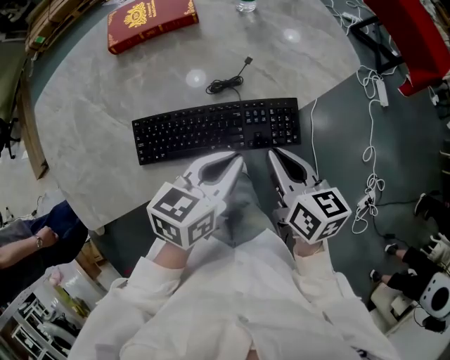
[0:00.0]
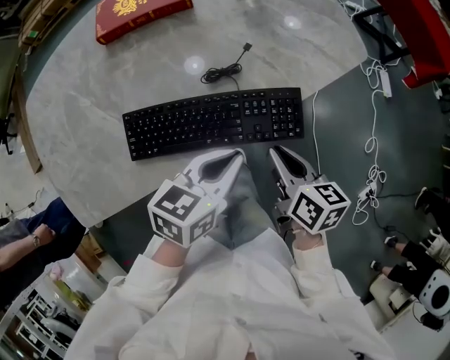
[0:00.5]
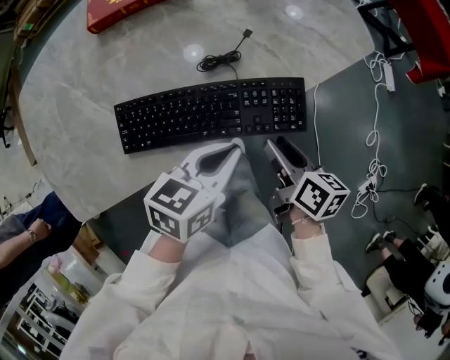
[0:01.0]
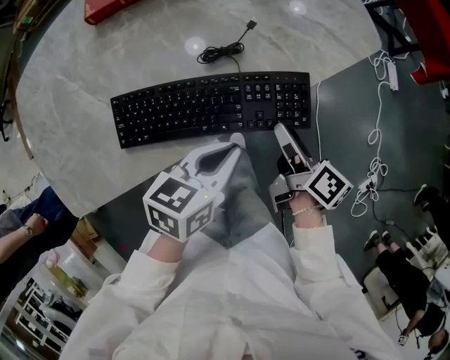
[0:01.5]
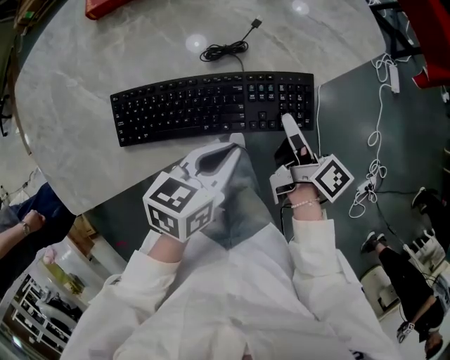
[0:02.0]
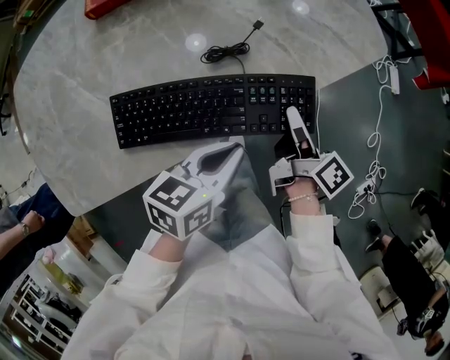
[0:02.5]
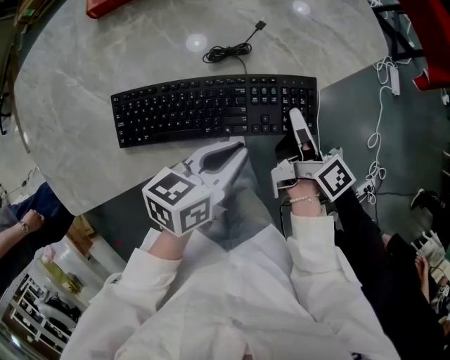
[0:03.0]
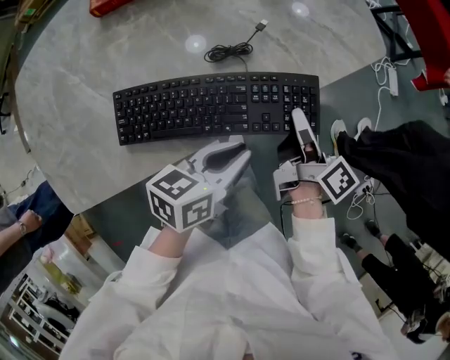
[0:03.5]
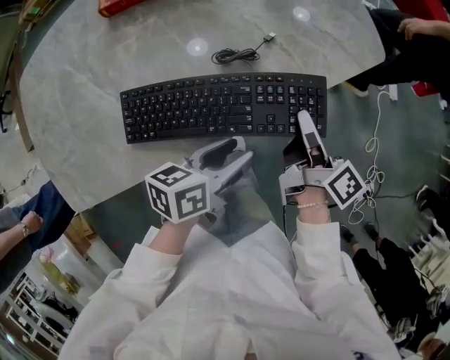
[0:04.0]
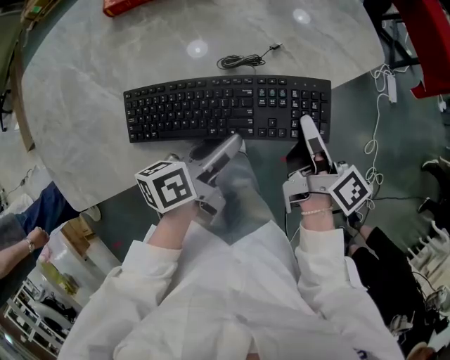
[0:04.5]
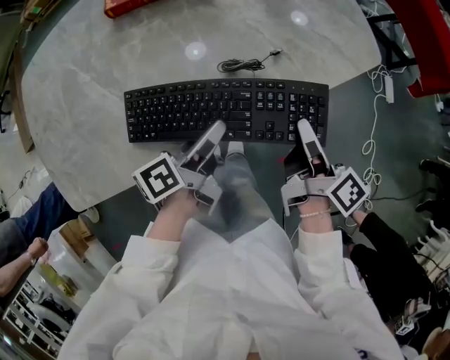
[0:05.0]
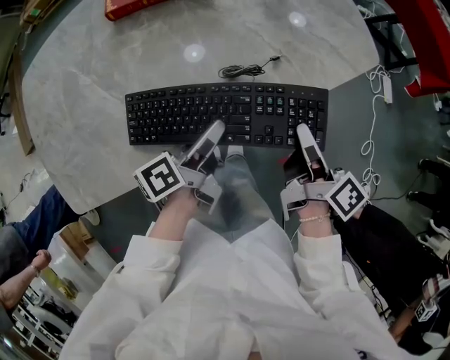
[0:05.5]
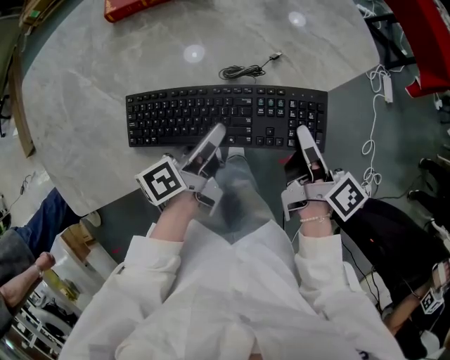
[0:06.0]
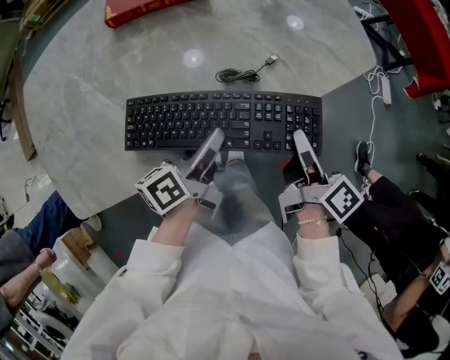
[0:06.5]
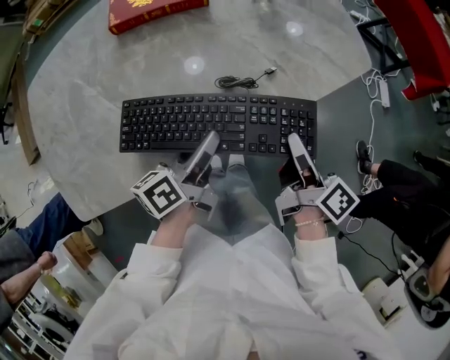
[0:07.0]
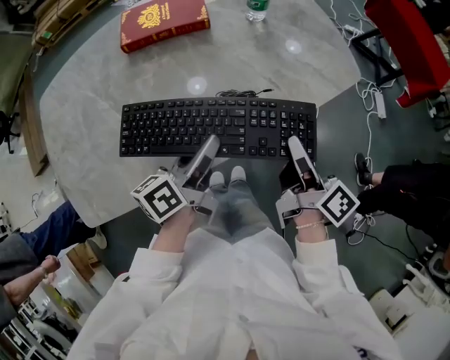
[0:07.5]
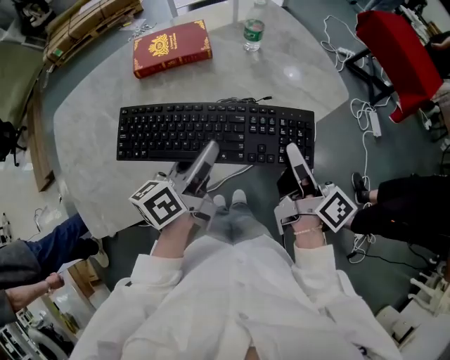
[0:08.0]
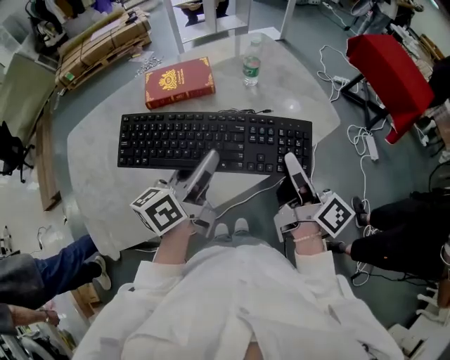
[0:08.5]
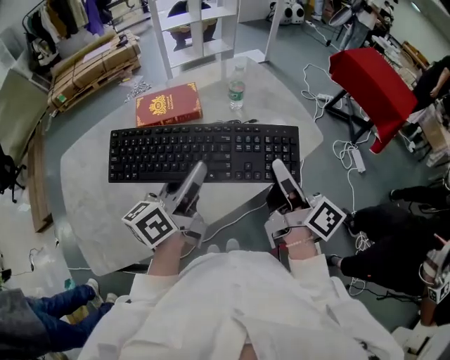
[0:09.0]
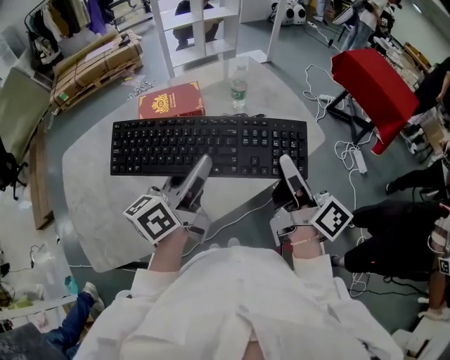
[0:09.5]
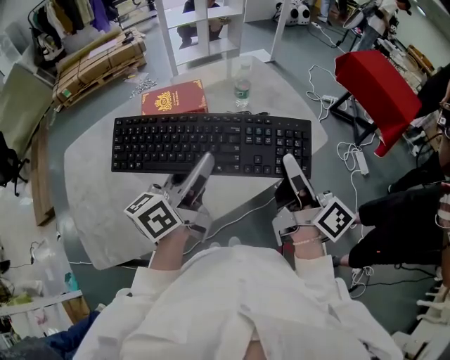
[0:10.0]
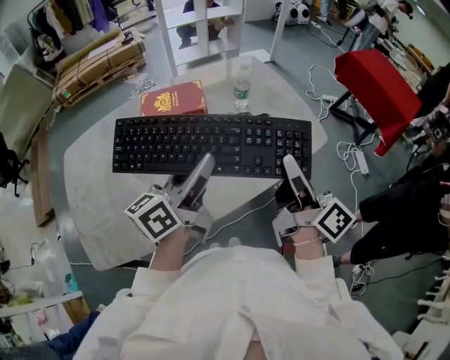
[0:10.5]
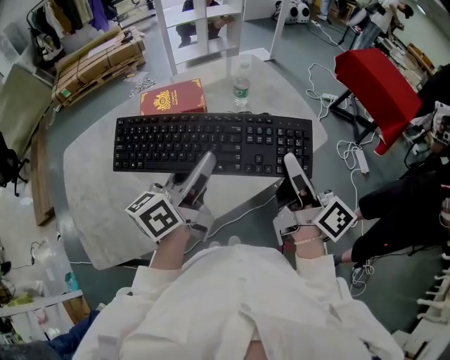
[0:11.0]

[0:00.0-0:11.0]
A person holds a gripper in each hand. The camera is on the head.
0:00.0 to 0:02.0: The grippers both shift downward by approximately 10 cm. The right gripper twists some 40 degrees clockwise, seen from behind, and opens its fingers.
0:02.0 to 0:03.5: The right gripper closes up.
0:03.5 to 0:05.5: The left gripper is displaced to the left by approximately 10 cm, rotates some 40 degrees, and opens its fingers.
0:05.5 to 0:07.5: Both grippers move downward, some 10 cm.
0:07.5 to 0:09.0: Both grippers move upward, some 10 cm. The right gripper rotates about 20 degrees. The left gripper swivels some 20 degrees.
0:09.0 to 0:11.0: The grippers stay close to where they were, moving slightly.

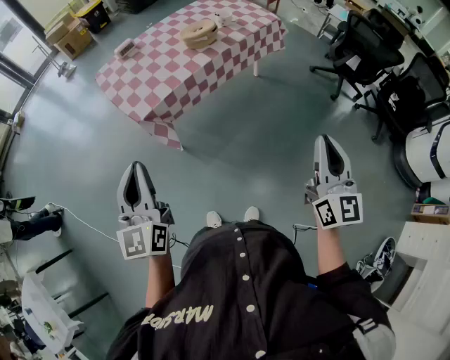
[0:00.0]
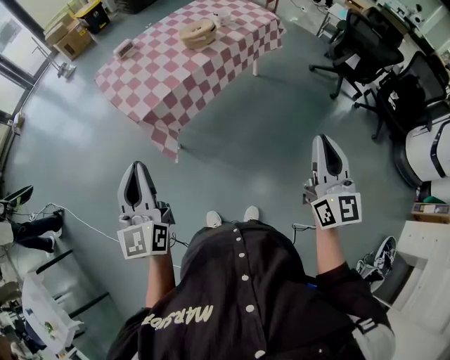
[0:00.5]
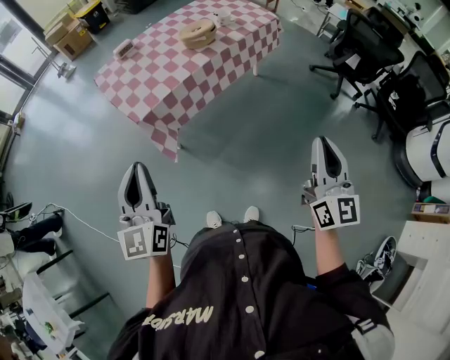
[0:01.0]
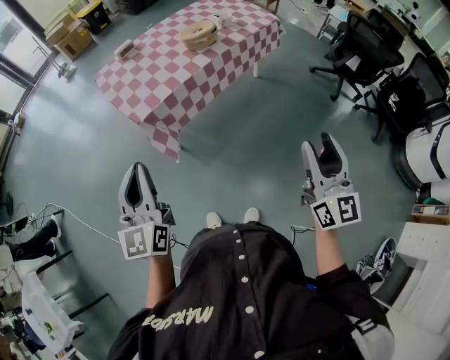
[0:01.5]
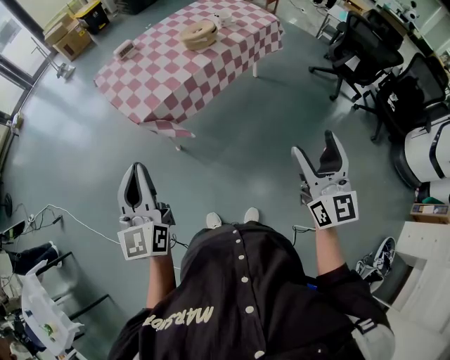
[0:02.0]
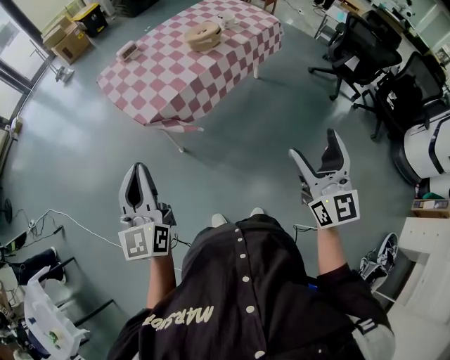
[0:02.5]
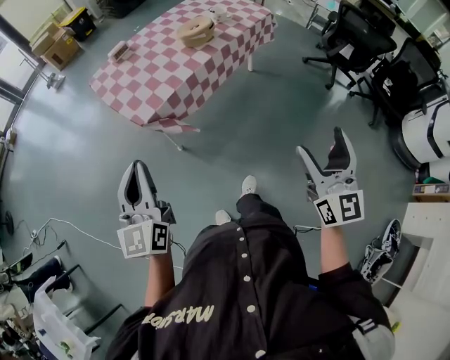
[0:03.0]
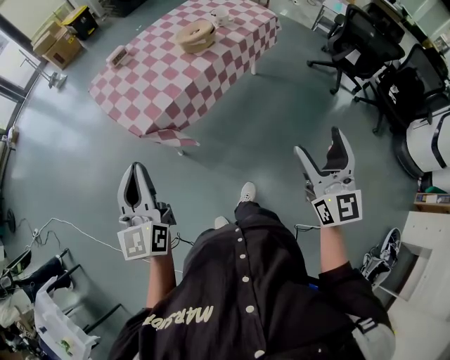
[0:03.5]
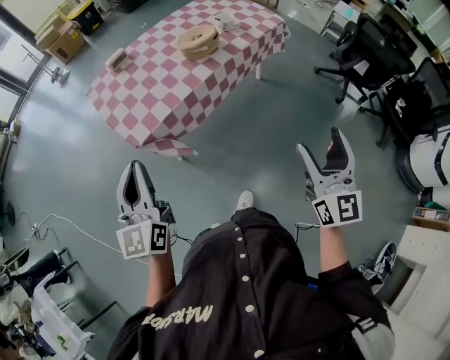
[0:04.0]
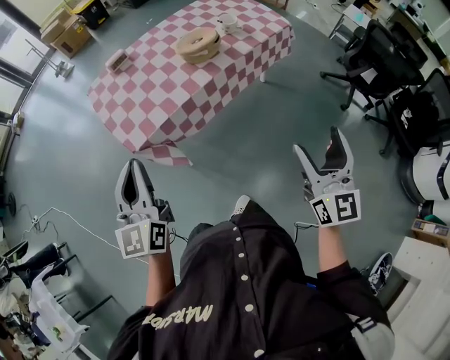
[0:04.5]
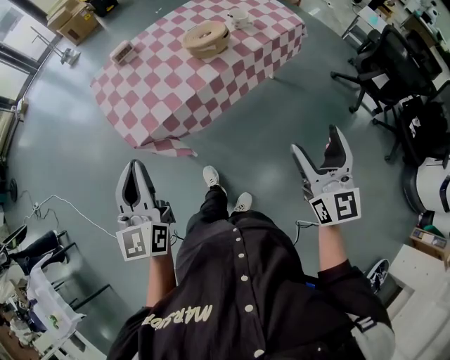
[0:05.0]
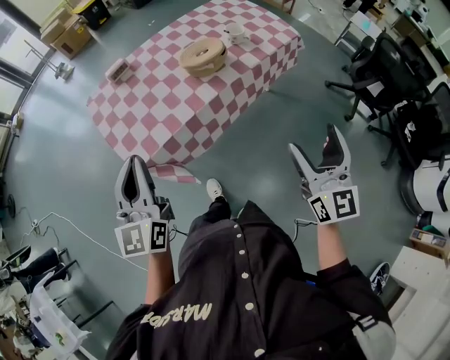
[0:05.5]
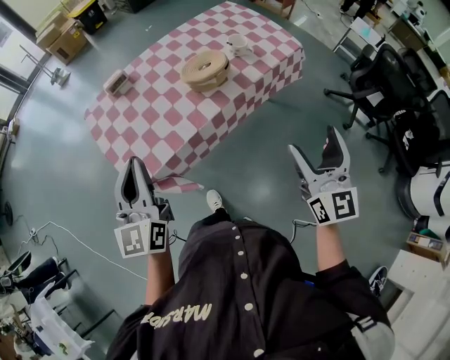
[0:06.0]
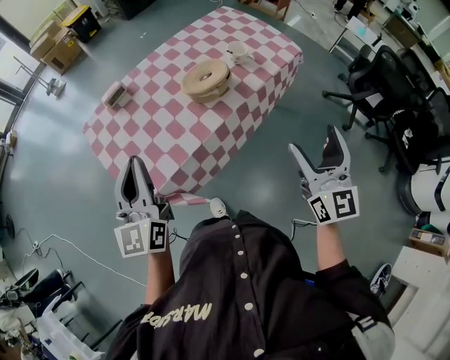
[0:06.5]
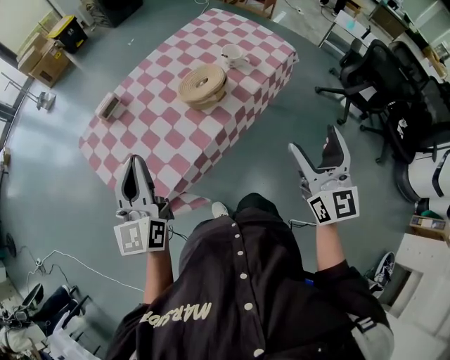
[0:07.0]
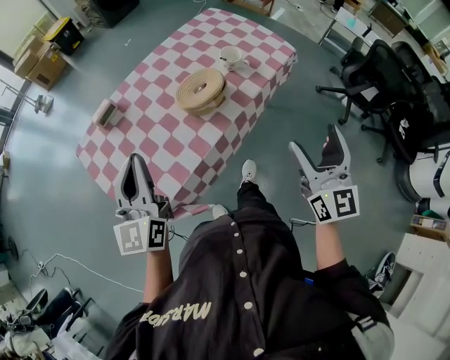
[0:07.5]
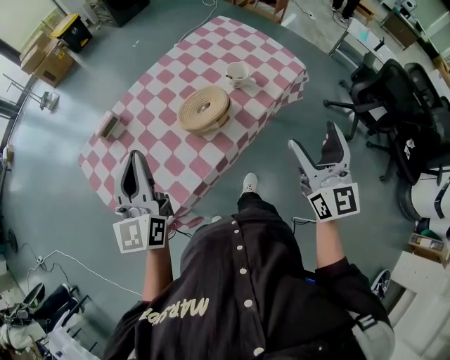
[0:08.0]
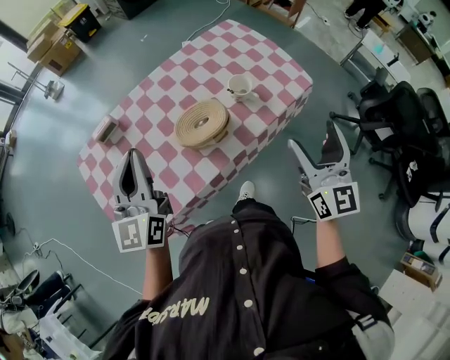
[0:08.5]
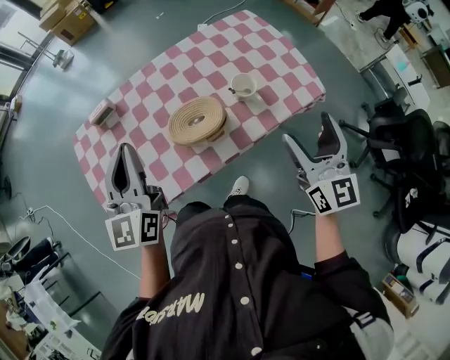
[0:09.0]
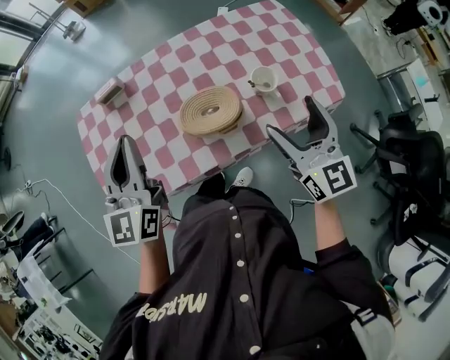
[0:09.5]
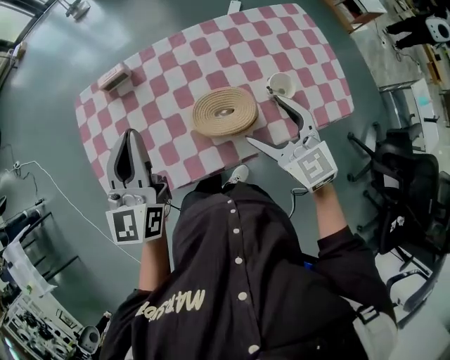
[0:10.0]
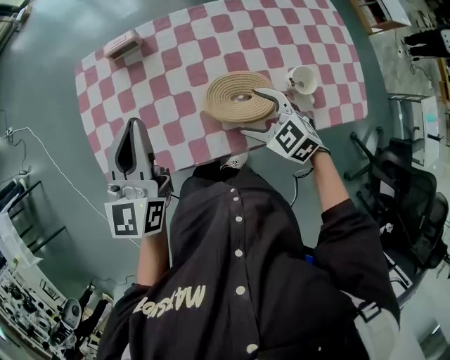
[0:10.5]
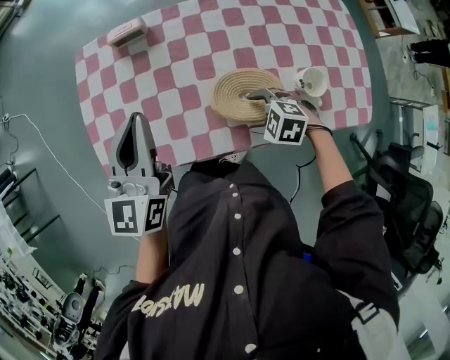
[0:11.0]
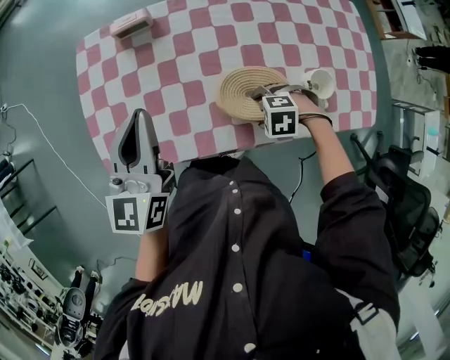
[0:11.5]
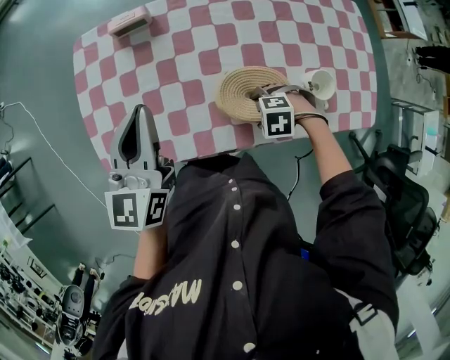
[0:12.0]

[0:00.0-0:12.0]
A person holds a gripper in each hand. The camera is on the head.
0:00.0 to 0:02.0: The right gripper opens up.
0:02.0 to 0:04.0: Both grippers travel together forward, some 15 cm.
0:04.0 to 0:06.0: Both grippers travel together forward, some 20 cm.
0:06.0 to 0:08.0: Both grippers travel together forward, about 20 cm.
0:08.0 to 0:10.0: The right gripper shifts by about 30 cm, and rotates approximately 60 degrees; the left gripper shifts by about 10 cm, and swivels roughly 20 degrees.
0:10.0 to 0:12.0: The left gripper travels downward by about 5 cm, while the right gripper is displaced downward by some 25 cm, and tilts its fingers some 50 degrees downward.

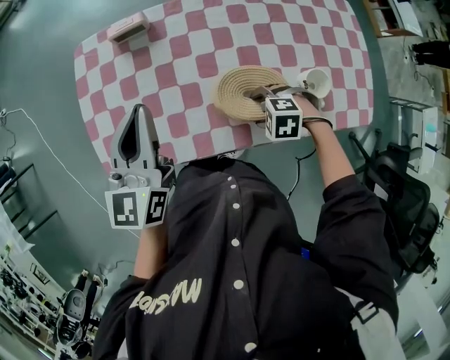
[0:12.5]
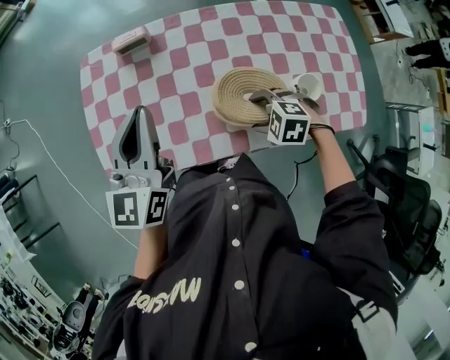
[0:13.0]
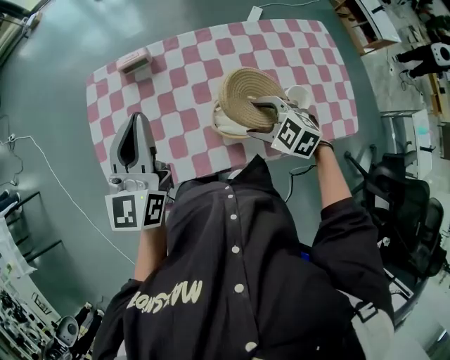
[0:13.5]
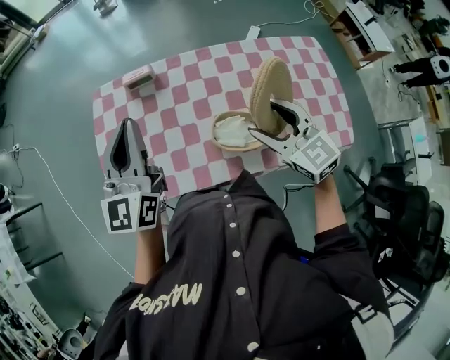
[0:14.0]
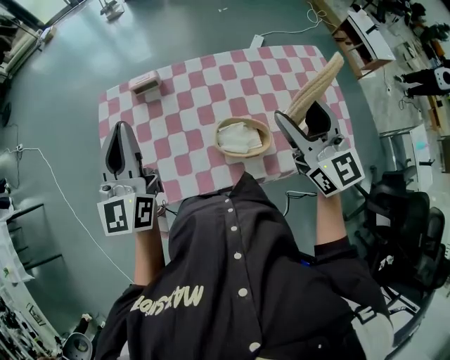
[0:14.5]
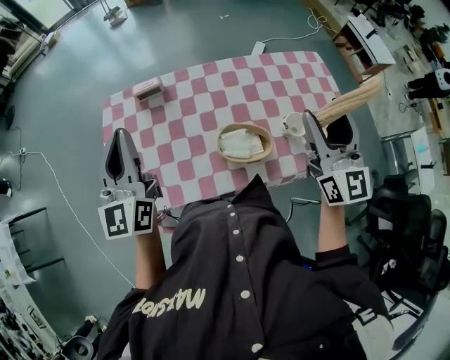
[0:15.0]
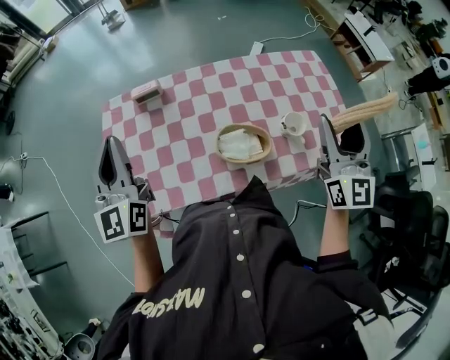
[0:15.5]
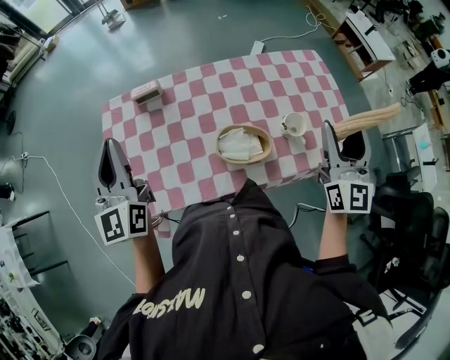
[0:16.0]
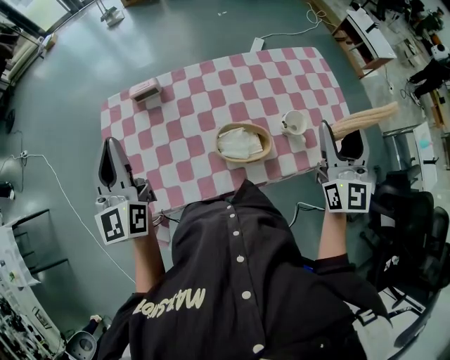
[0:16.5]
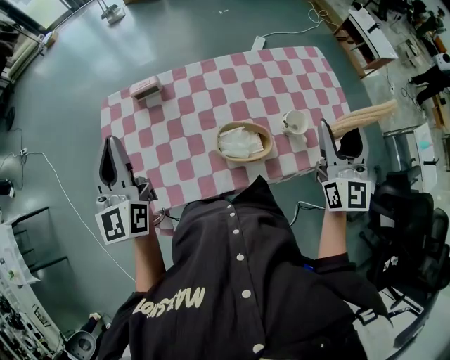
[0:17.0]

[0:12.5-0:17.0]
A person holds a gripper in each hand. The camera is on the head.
0:12.5 to 0:14.5: The left gripper shifts some 10 cm upward. The right gripper shifts about 35 cm upward, and tilts its fingers roughly 70 degrees upward.
0:14.5 to 0:17.0: The right gripper heads to the right, covering approximately 10 cm, and swivels some 30 degrees.
